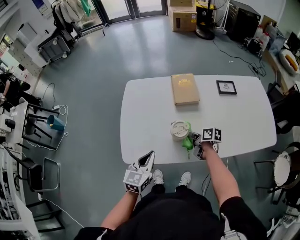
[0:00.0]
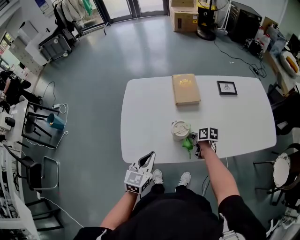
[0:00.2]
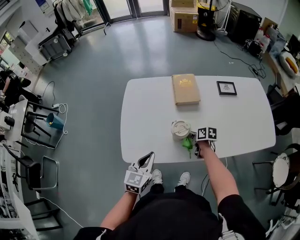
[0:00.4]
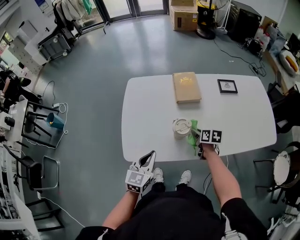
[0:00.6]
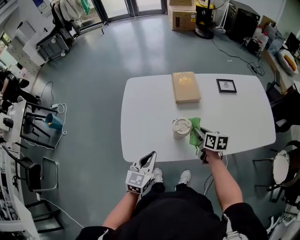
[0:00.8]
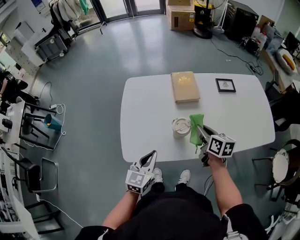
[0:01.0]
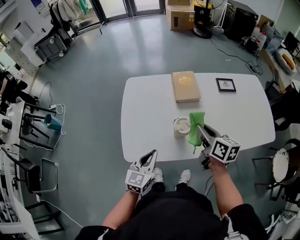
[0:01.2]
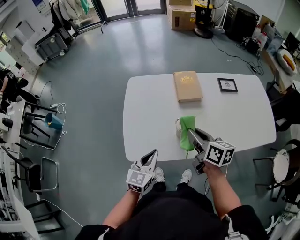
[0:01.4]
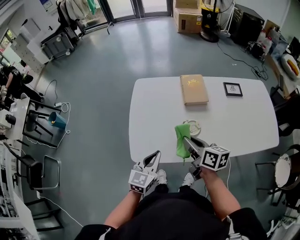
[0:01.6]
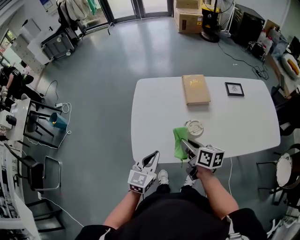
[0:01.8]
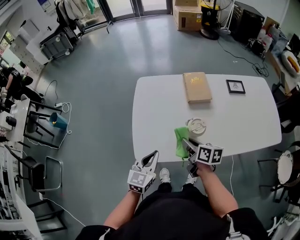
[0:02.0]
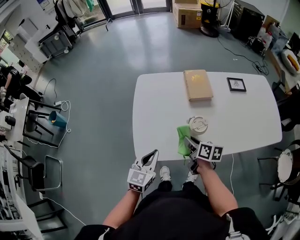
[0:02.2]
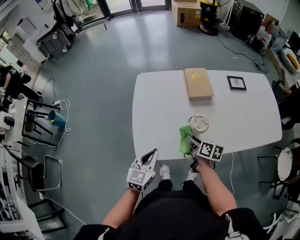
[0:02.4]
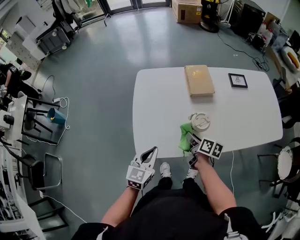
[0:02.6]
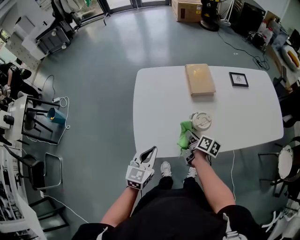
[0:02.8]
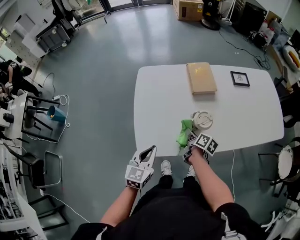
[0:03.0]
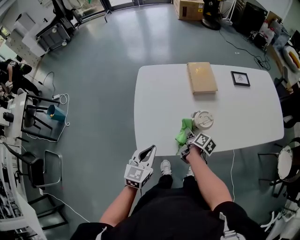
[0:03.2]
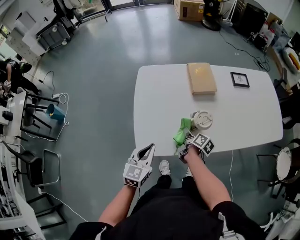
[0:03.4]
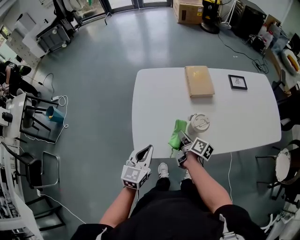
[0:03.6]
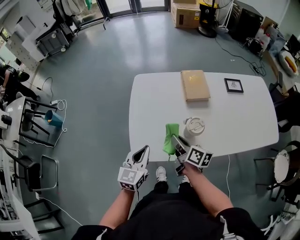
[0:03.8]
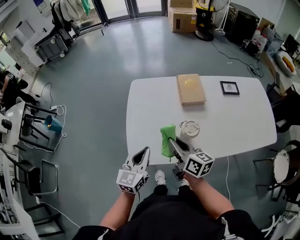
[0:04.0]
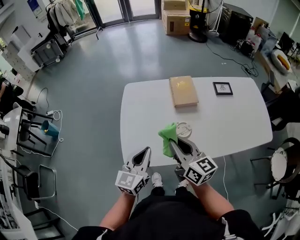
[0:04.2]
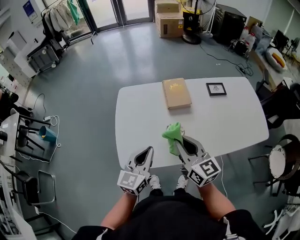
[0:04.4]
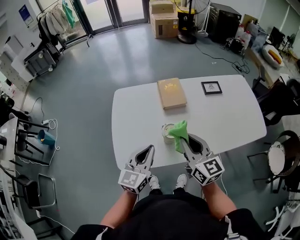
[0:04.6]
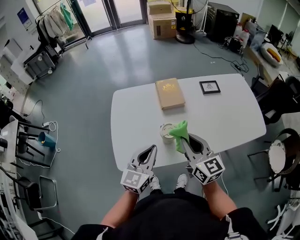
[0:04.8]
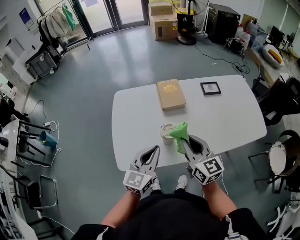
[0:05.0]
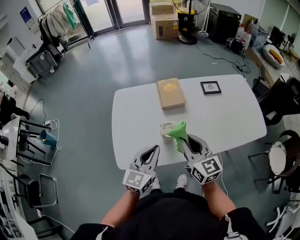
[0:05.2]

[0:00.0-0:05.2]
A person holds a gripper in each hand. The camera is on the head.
0:00.0 to 0:01.8: The right gripper shifts approximately 20 cm upward and to the left, and changes its angle by some 20 degrees. The left gripper shifts approximately 5 cm to the left.
0:01.8 to 0:03.4: The right gripper is displaced downward by some 15 cm, and rotates some 40 degrees; the left gripper goes about 5 cm to the left.
0:03.4 to 0:05.2: The right gripper goes roughly 30 cm upward, and rolls counterclockwise, seen from behind, by roughly 60 degrees. Meanwhile the left gripper shifts roughly 20 cm to the right and upward.

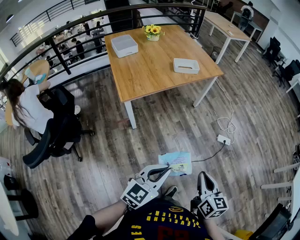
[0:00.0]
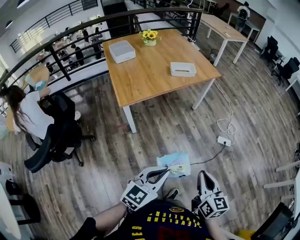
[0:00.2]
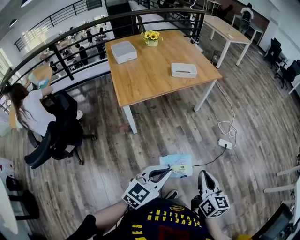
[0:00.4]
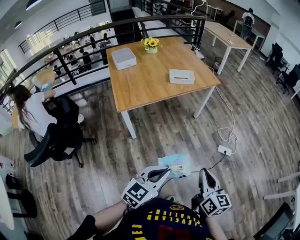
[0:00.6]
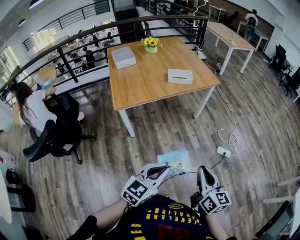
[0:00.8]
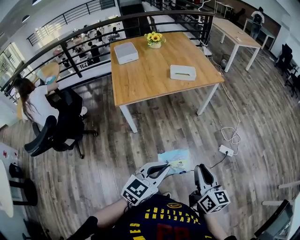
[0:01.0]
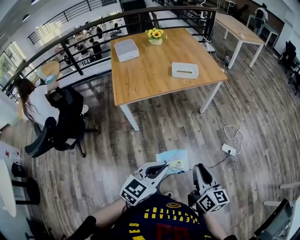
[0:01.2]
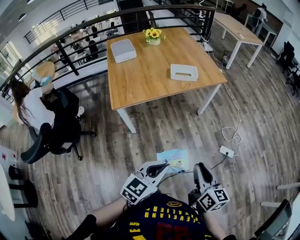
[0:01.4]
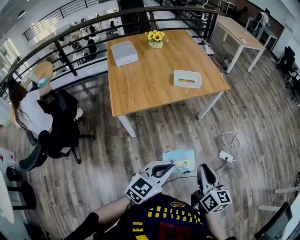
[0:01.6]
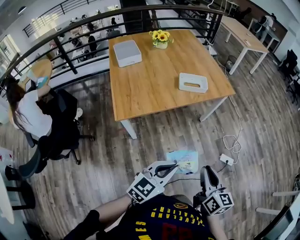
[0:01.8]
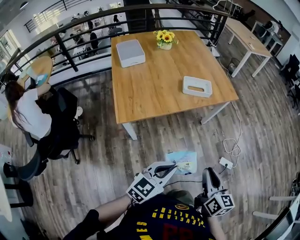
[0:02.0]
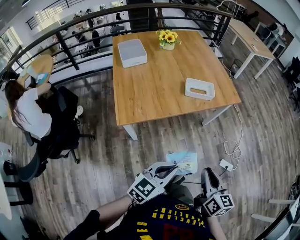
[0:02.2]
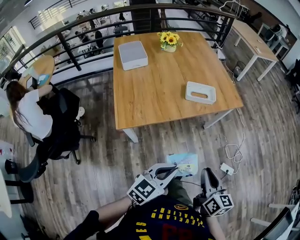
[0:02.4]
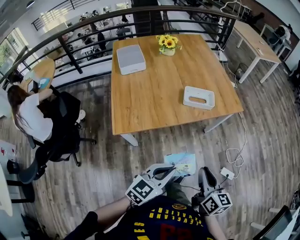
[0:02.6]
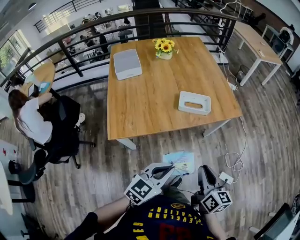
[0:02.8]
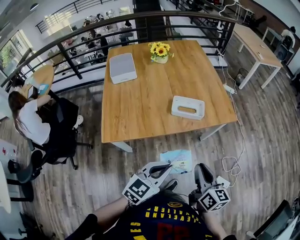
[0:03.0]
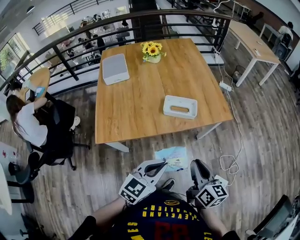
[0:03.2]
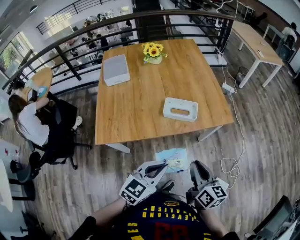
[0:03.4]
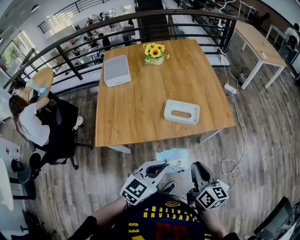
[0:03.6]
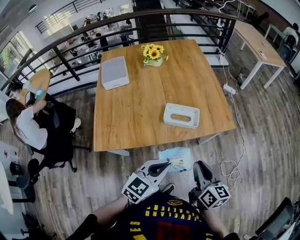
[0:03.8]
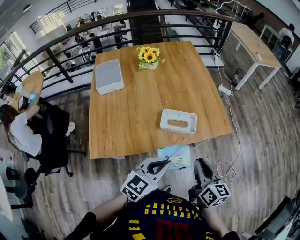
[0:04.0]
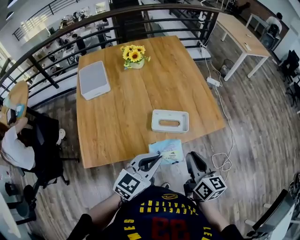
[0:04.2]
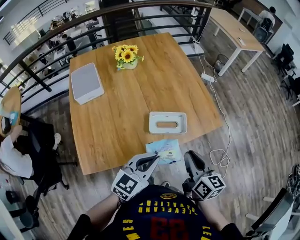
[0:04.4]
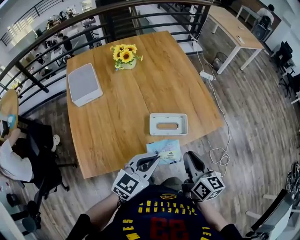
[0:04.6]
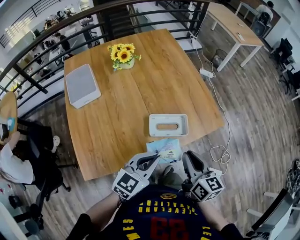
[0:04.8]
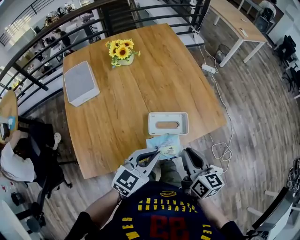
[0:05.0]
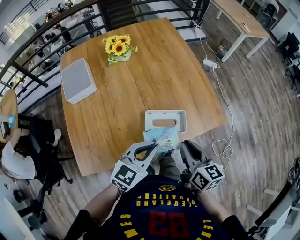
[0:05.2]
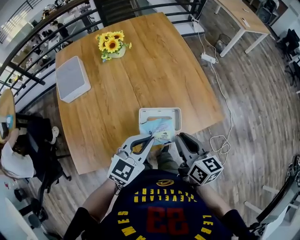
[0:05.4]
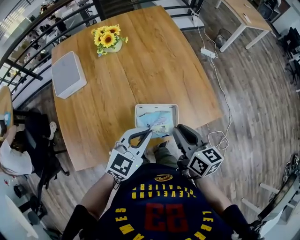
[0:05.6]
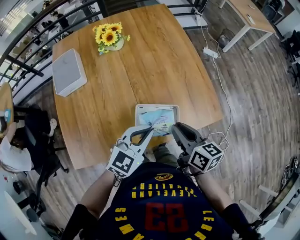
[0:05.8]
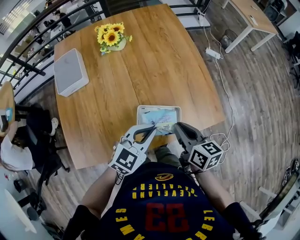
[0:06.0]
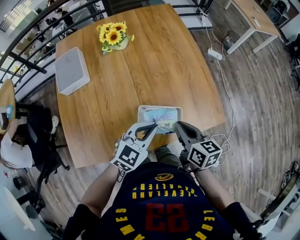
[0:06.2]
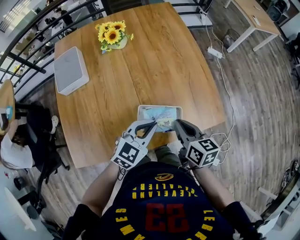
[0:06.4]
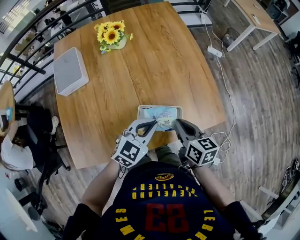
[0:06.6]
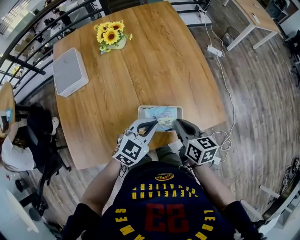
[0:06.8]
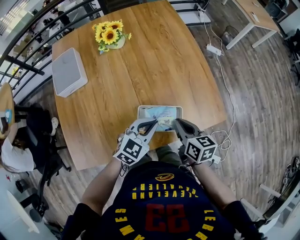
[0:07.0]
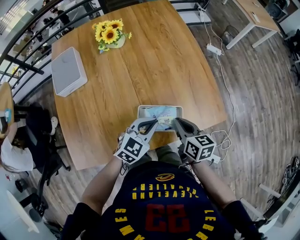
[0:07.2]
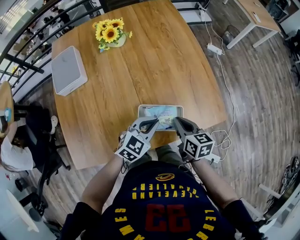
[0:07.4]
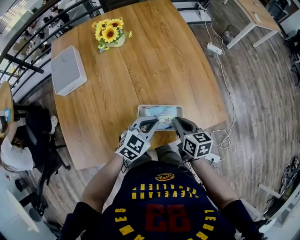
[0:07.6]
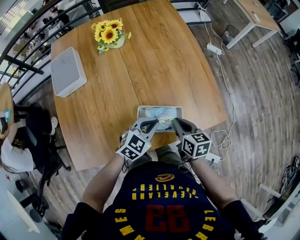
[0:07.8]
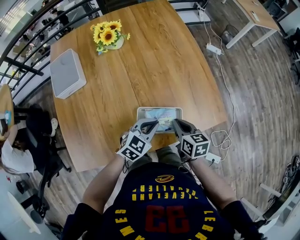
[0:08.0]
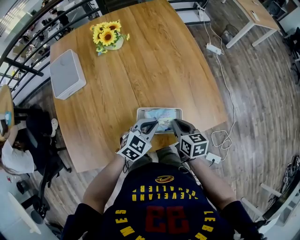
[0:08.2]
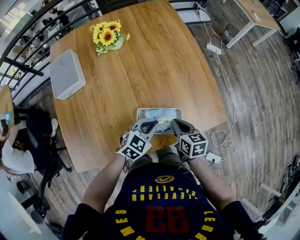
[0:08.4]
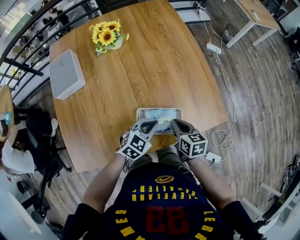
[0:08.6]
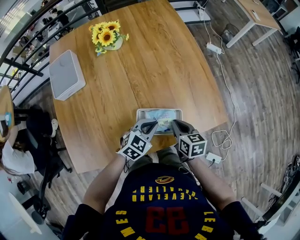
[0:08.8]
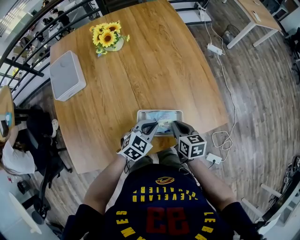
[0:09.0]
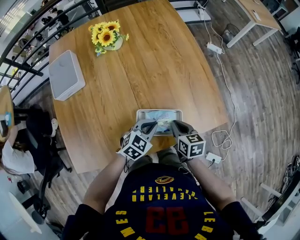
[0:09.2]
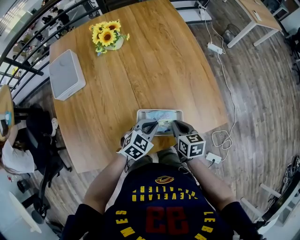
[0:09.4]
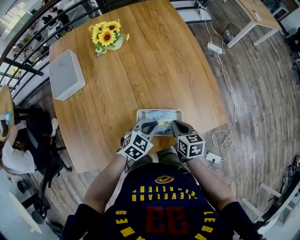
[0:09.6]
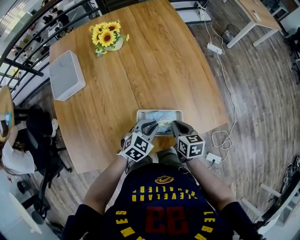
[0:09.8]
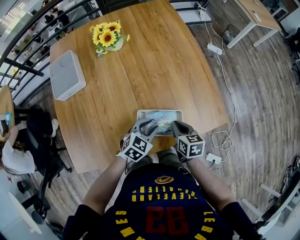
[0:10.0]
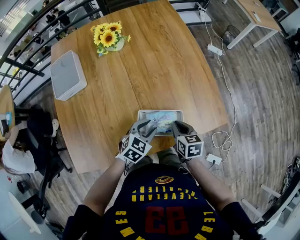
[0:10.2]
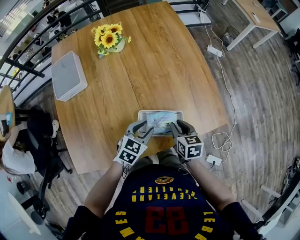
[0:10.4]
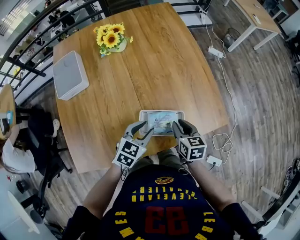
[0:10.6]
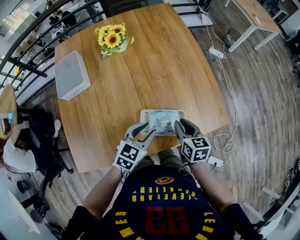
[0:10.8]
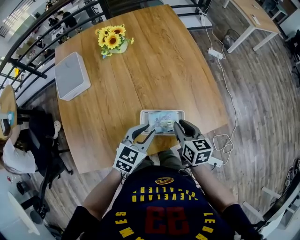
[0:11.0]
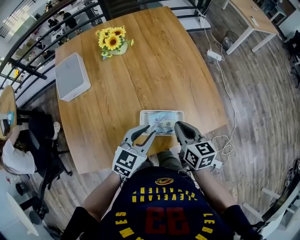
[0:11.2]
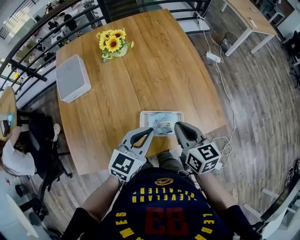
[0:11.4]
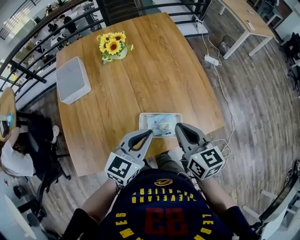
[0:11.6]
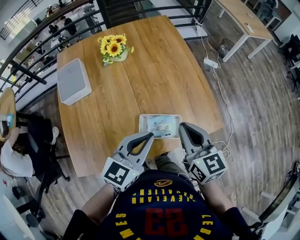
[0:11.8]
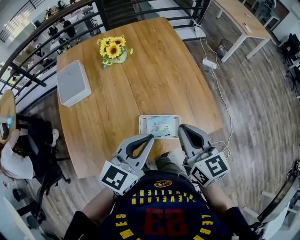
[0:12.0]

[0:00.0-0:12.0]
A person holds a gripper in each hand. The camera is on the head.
0:00.0 to 0:01.6: The two grippers go approximately 20 cm forward.
0:01.6 to 0:03.0: Both grippers travel together forward, approximately 25 cm.
0:03.0 to 0:04.4: The grippers both shift forward by approximately 20 cm.
0:04.4 to 0:06.0: Both grippers move forward, roughly 15 cm.
0:06.0 to 0:07.6: Both grippers move downward, roughly 10 cm.
0:07.6 to 0:09.0: The grippers move only a little.
0:09.0 to 0:10.4: The left gripper opens.
0:10.4 to 0:12.0: Both grippers move upward, roughly 25 cm. The right gripper changes its angle by about 30 degrees, and closes up; the left gripper changes its angle by some 30 degrees, and closes.

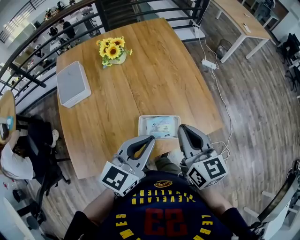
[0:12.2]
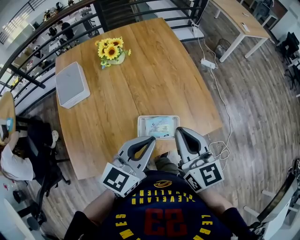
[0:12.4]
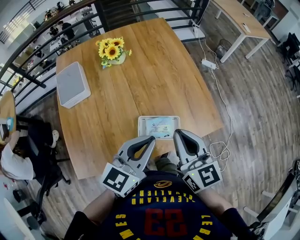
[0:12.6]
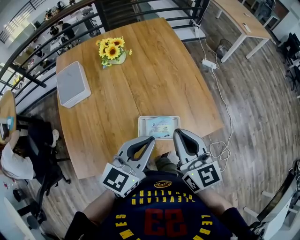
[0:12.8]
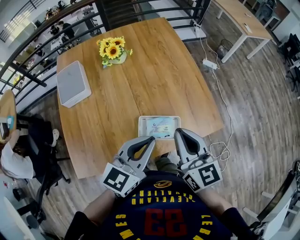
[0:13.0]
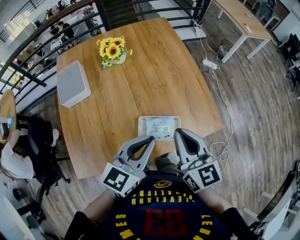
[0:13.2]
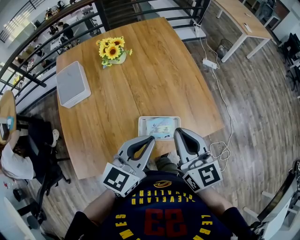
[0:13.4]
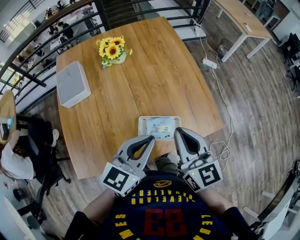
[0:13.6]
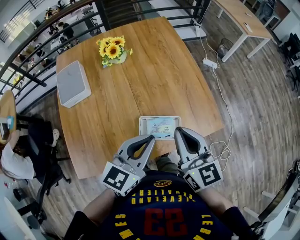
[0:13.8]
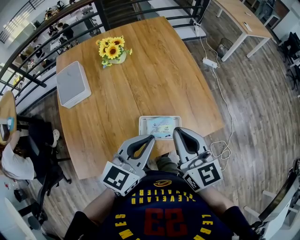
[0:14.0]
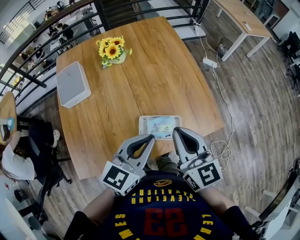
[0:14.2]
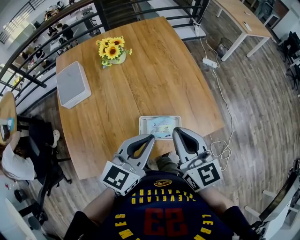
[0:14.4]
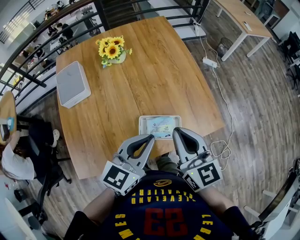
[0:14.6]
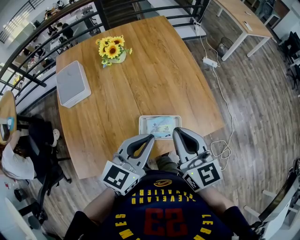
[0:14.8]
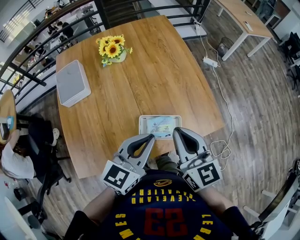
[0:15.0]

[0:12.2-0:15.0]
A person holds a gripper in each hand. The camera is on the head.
0:12.2 to 0:13.6: There are only small adjustments of the grippers.
0:13.6 to 0:15.0: Both grippers stay put.

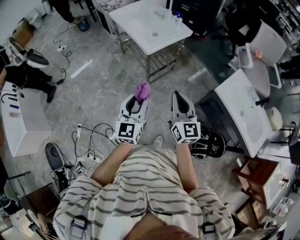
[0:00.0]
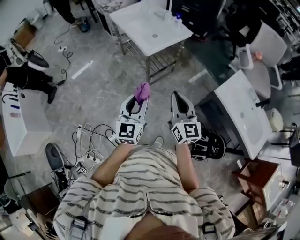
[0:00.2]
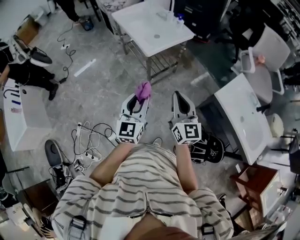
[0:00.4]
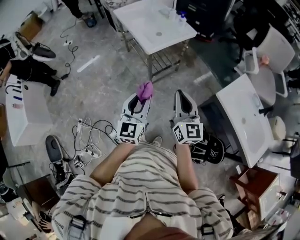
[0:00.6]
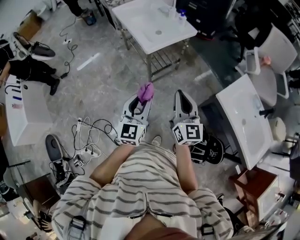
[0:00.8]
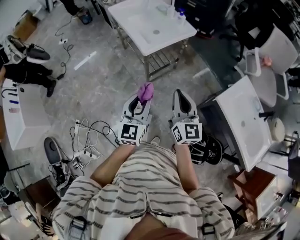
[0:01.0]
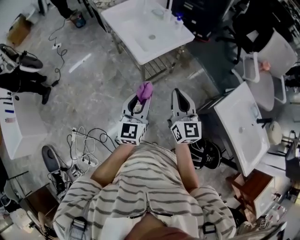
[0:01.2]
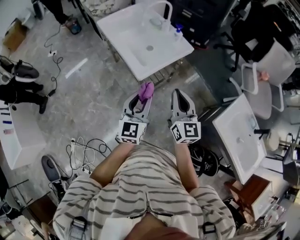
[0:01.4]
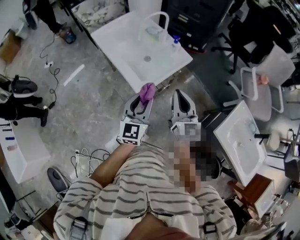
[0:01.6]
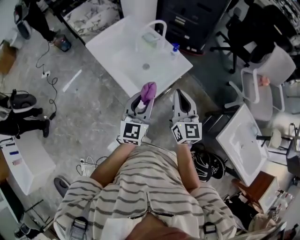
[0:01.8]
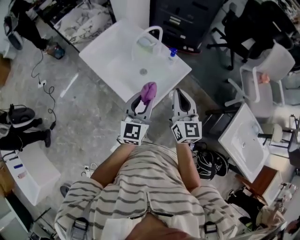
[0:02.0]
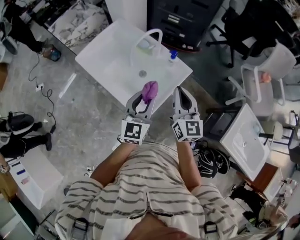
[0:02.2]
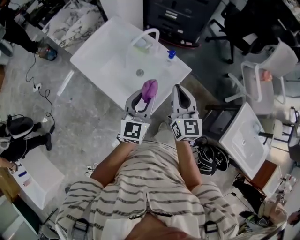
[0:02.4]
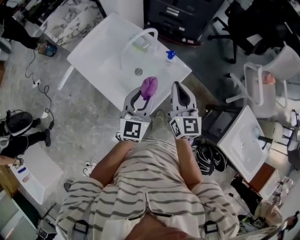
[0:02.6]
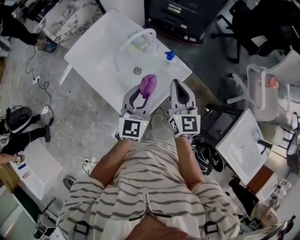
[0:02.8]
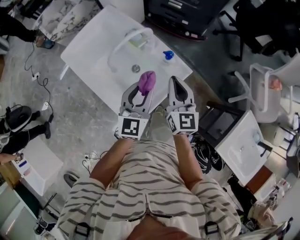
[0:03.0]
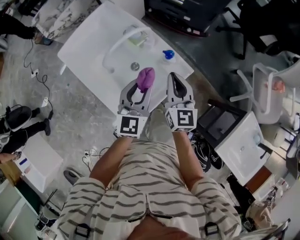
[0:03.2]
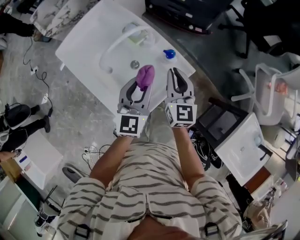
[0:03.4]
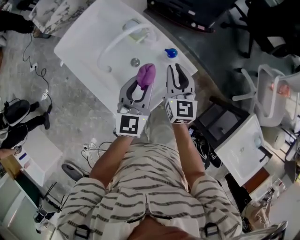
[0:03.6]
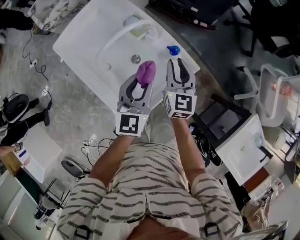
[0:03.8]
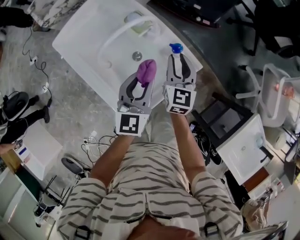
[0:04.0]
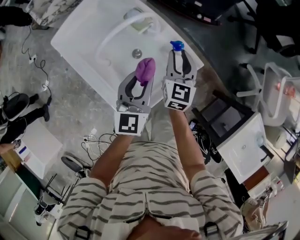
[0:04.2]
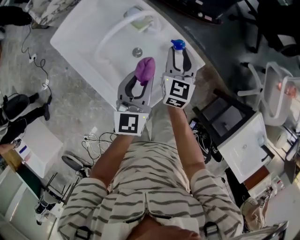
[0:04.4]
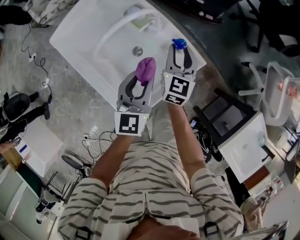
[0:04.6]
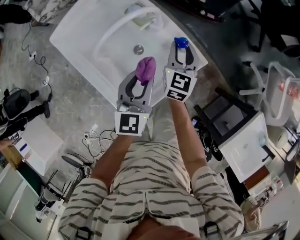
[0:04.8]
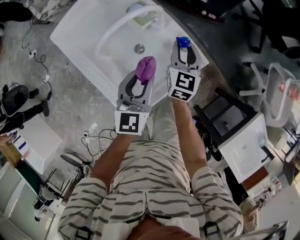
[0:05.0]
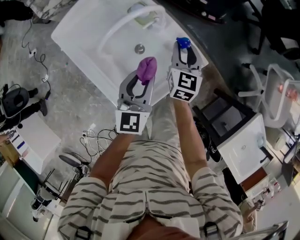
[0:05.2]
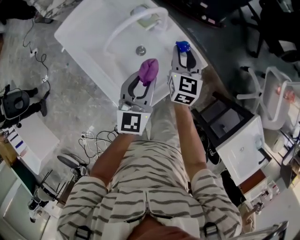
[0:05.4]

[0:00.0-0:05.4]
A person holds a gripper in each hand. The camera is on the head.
0:00.0 to 0:01.4: Both grippers travel together forward, about 25 cm.
0:01.4 to 0:02.8: The grippers both shift forward by about 40 cm.
0:02.8 to 0:04.0: The right gripper moves downward and forward, roughly 20 cm, and opens up; the left gripper is displaced downward and forward by some 10 cm.
0:04.0 to 0:05.4: The grippers make only small movements.
